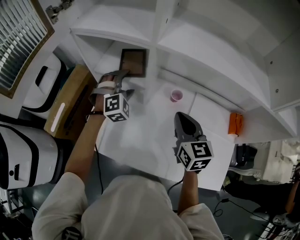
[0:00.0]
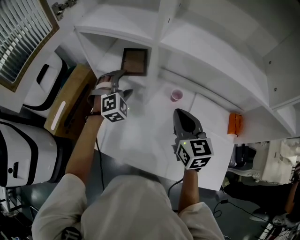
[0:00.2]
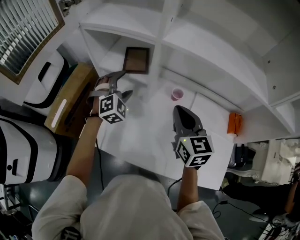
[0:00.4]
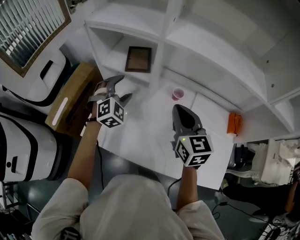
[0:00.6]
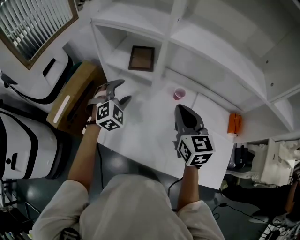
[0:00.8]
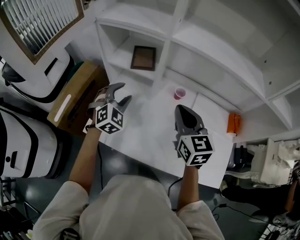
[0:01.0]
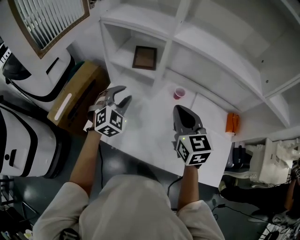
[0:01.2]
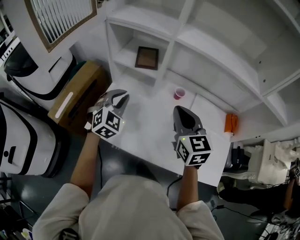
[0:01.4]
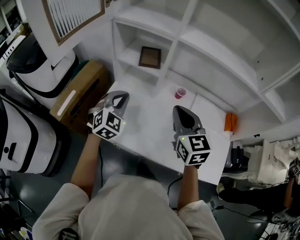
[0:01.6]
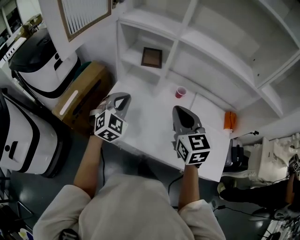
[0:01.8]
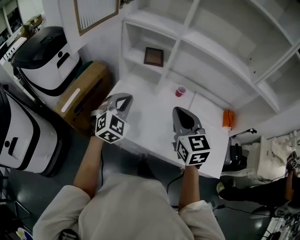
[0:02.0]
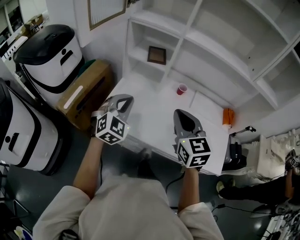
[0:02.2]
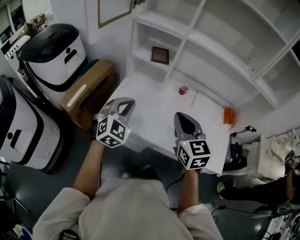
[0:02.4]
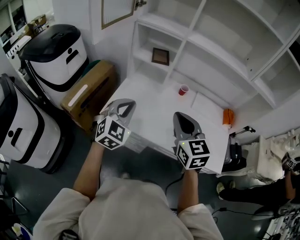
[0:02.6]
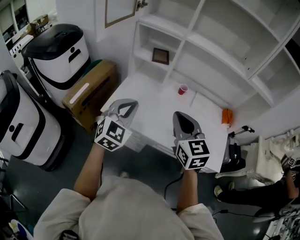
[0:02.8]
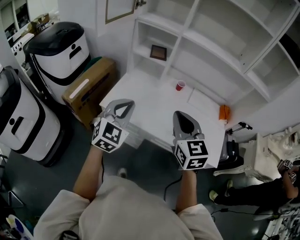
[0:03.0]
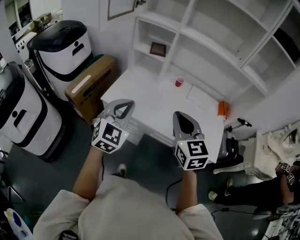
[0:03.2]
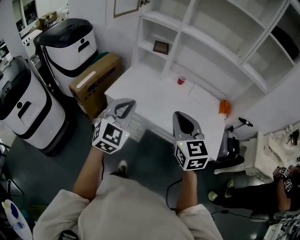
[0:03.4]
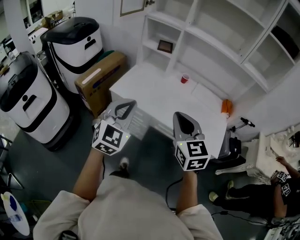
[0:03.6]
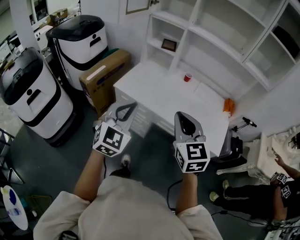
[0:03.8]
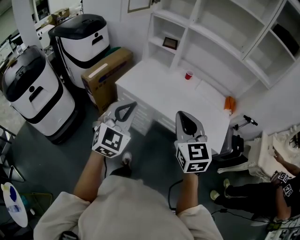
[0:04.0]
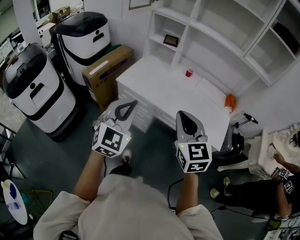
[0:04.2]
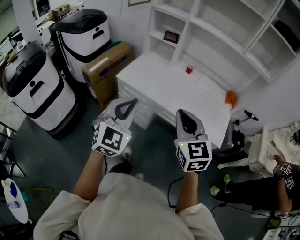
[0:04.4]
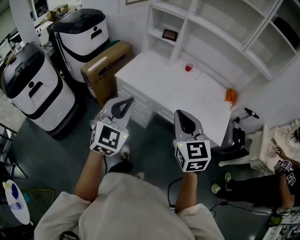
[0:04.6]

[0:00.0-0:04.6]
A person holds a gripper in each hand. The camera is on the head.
0:00.0 to 0:01.6: The left gripper travels backward by approximately 20 cm, turns by about 30 degrees, and closes up. The right gripper heads backward, to the left and upward, covering roughly 15 cm.
0:01.6 to 0:03.0: Both grippers move backward, about 25 cm.
0:03.0 to 0:04.6: The two grippers go some 25 cm backward.

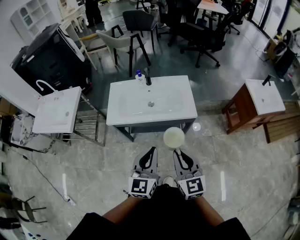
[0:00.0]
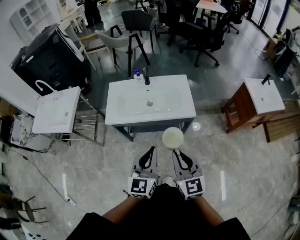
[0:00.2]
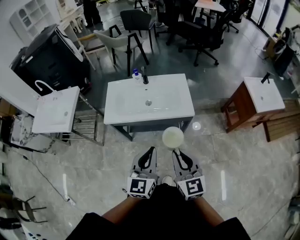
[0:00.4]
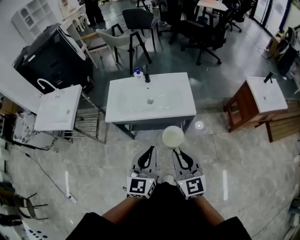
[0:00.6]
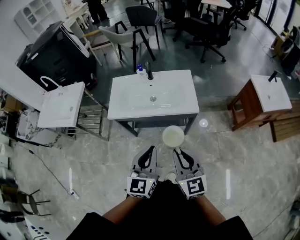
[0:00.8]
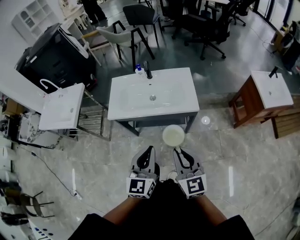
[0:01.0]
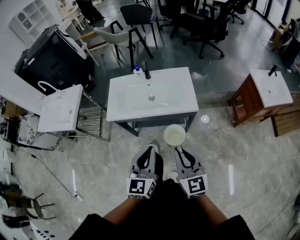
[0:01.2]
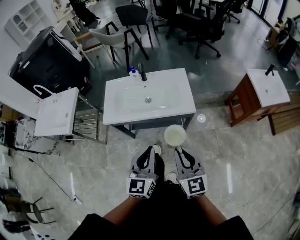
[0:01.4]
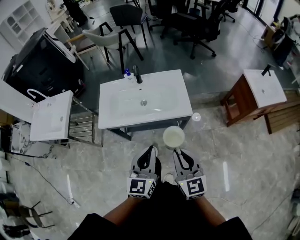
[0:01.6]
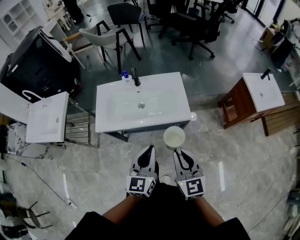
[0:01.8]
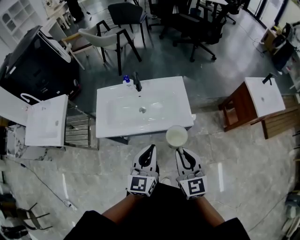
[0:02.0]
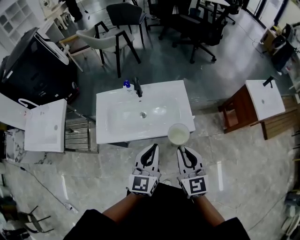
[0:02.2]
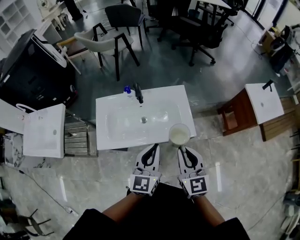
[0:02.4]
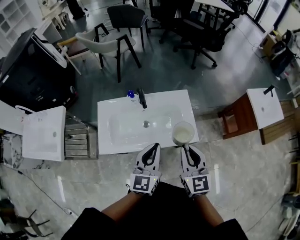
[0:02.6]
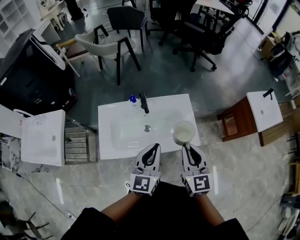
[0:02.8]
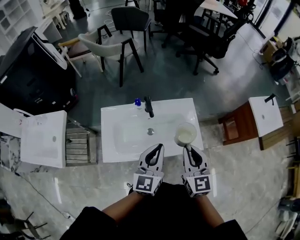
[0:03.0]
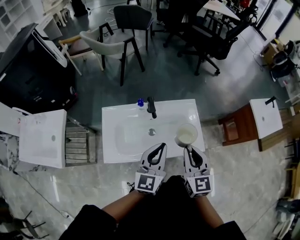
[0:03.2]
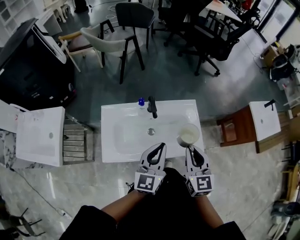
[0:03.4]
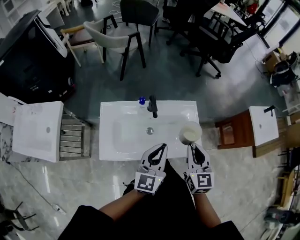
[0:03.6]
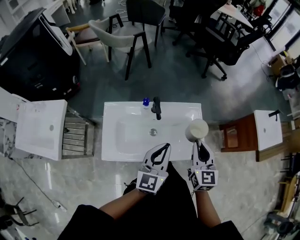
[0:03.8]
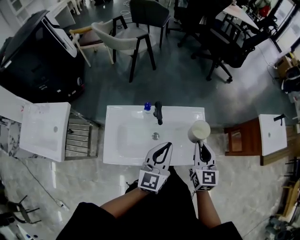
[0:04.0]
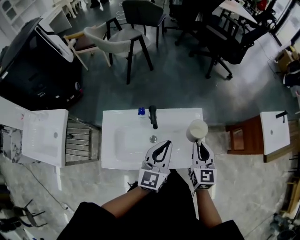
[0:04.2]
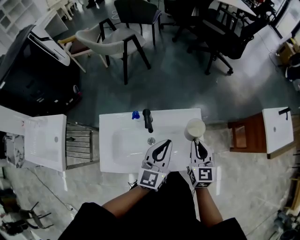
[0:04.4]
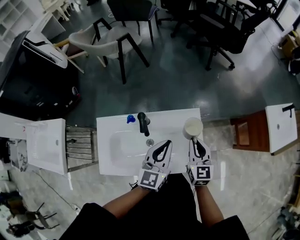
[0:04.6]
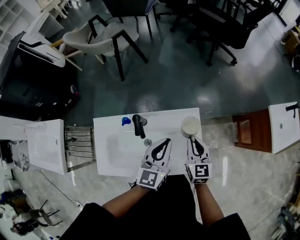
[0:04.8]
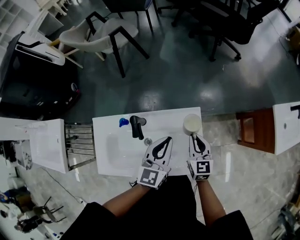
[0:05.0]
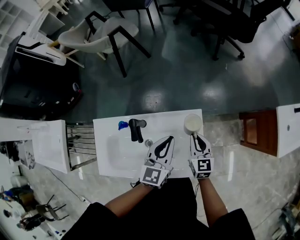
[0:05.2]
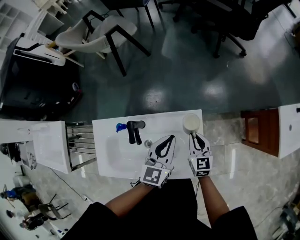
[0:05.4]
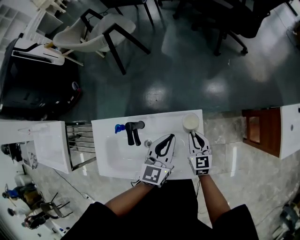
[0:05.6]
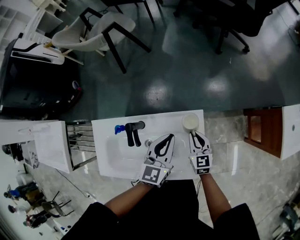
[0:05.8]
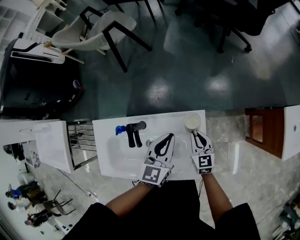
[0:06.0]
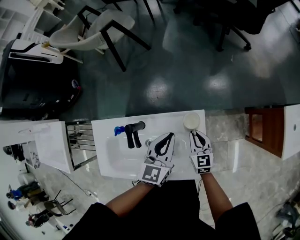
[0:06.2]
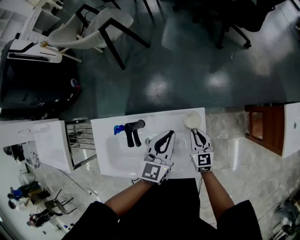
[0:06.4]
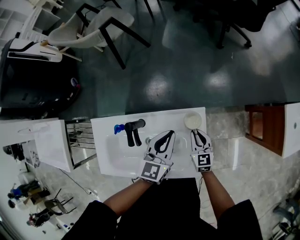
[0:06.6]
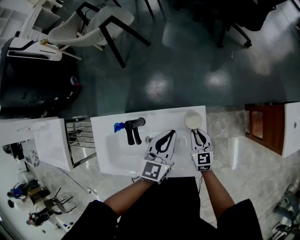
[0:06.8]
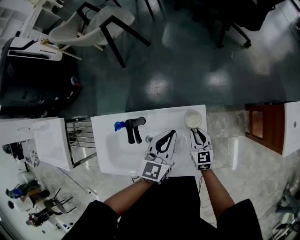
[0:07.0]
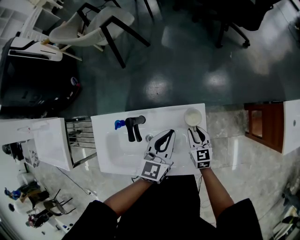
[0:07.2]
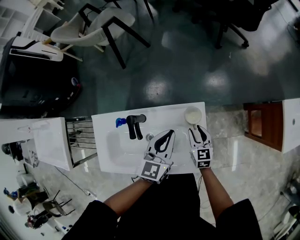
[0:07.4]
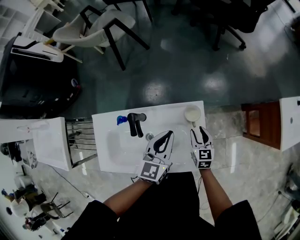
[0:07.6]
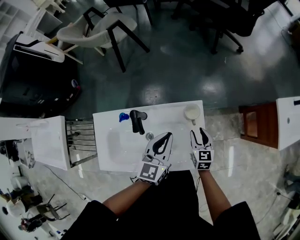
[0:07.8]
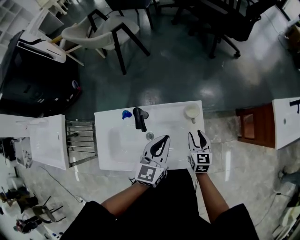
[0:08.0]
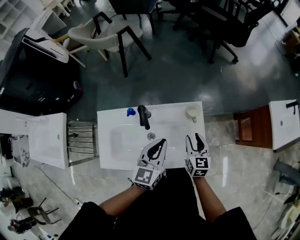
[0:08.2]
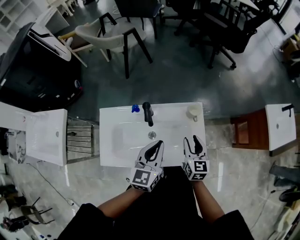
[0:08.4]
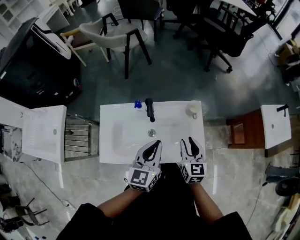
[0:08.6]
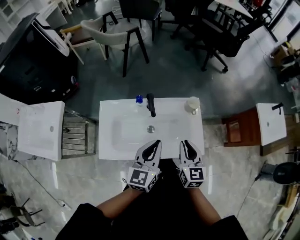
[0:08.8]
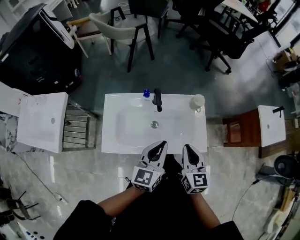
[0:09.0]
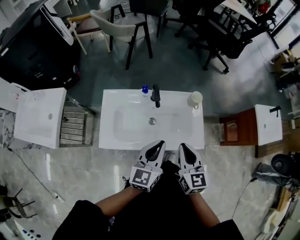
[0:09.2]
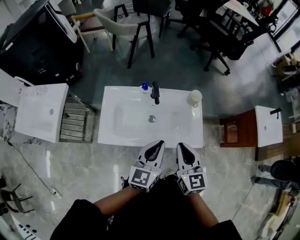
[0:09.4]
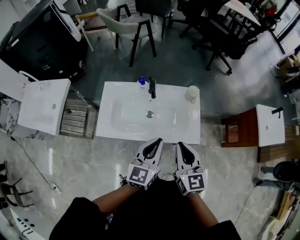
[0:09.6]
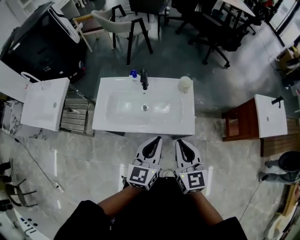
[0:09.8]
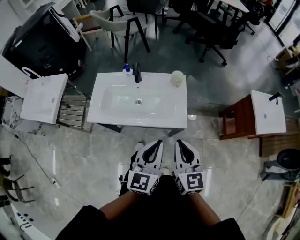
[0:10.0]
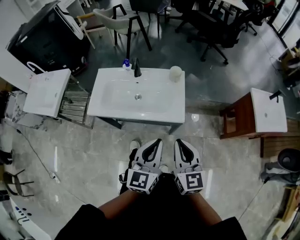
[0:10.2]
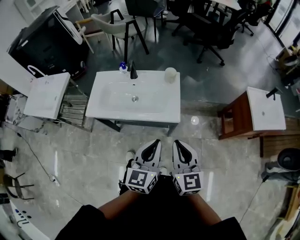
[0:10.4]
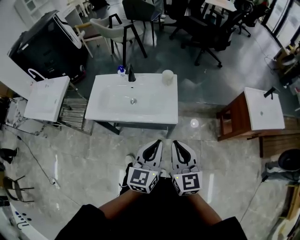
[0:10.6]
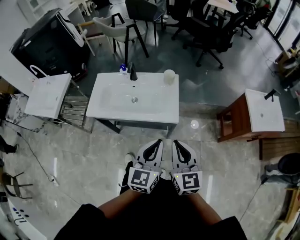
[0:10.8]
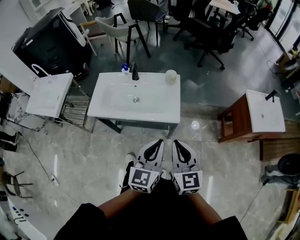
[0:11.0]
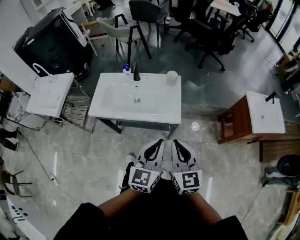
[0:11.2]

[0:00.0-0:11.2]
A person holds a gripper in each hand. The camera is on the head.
0:00.0 to 0:01.6: The right gripper is displaced to the right by approximately 5 cm, while the left gripper moves about 5 cm.
0:01.6 to 0:03.2: The grippers both shift forward by roughly 30 cm.
0:03.2 to 0:04.8: The left gripper heads forward, to the right and downward, covering roughly 25 cm; the right gripper shifts roughly 30 cm forward, downward and to the right.
0:04.8 to 0:06.4: The left gripper is displaced forward and downward by roughly 15 cm, while the right gripper moves downward and forward, about 15 cm.
0:06.4 to 0:08.0: Both grippers move backward and upward, roughly 10 cm. The right gripper opens up.
0:08.0 to 0:09.6: The right gripper travels backward, upward and to the left by about 35 cm, turns by roughly 20 degrees, and closes. Meanwhile the left gripper is displaced backward by about 25 cm.
0:09.6 to 0:11.2: Both grippers travel together backward and to the right, roughly 25 cm.

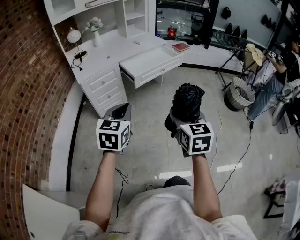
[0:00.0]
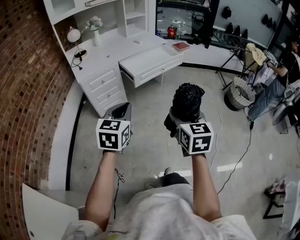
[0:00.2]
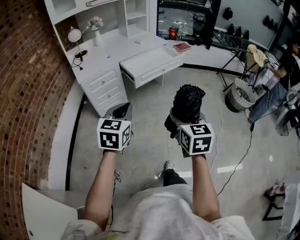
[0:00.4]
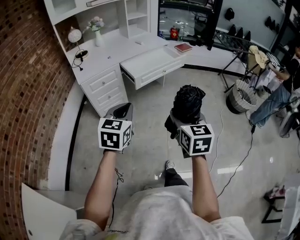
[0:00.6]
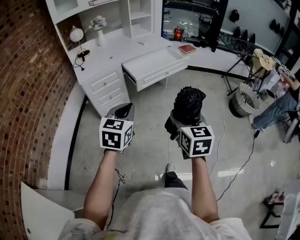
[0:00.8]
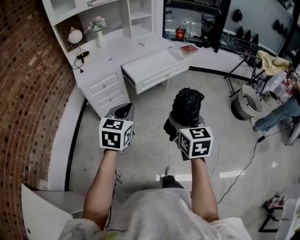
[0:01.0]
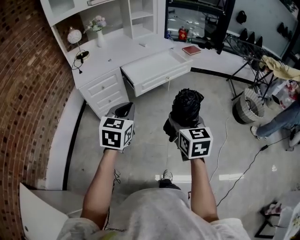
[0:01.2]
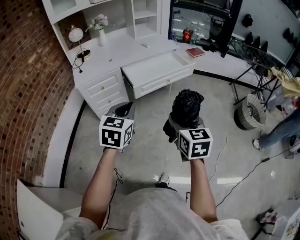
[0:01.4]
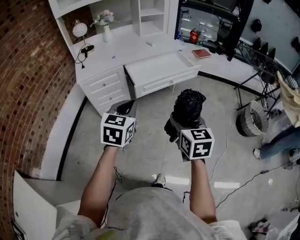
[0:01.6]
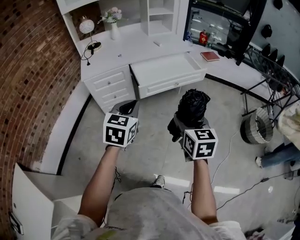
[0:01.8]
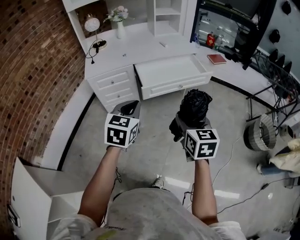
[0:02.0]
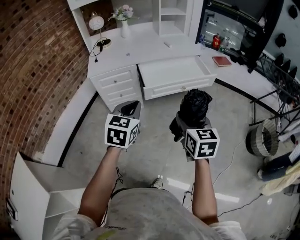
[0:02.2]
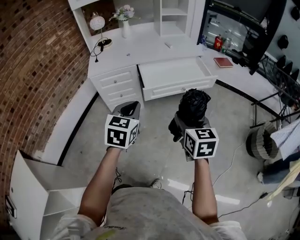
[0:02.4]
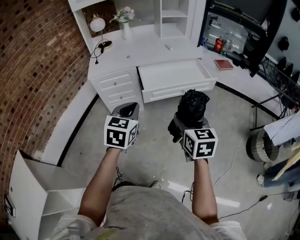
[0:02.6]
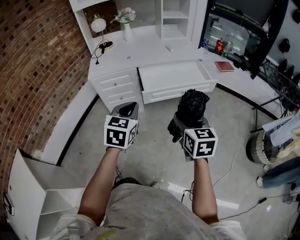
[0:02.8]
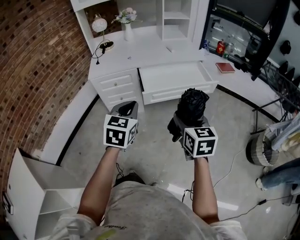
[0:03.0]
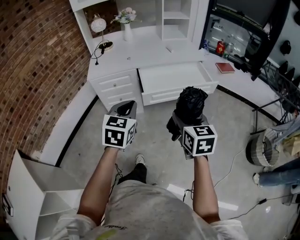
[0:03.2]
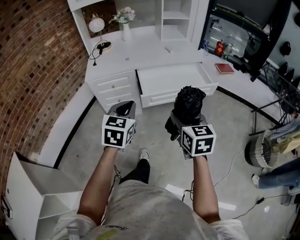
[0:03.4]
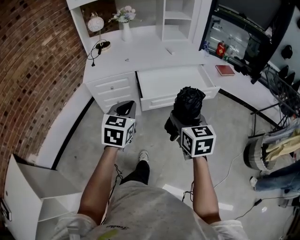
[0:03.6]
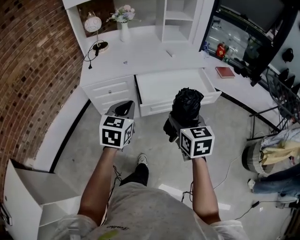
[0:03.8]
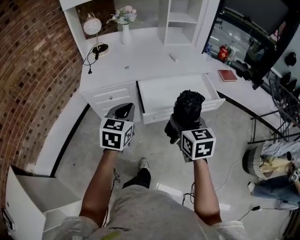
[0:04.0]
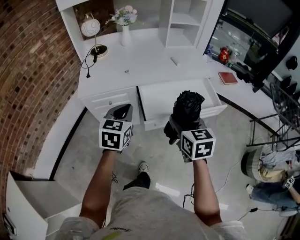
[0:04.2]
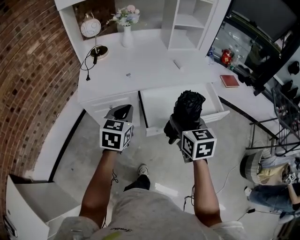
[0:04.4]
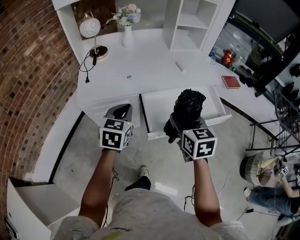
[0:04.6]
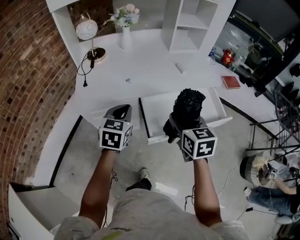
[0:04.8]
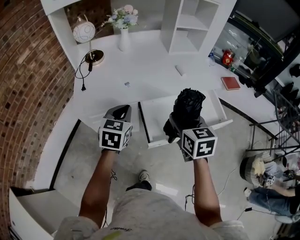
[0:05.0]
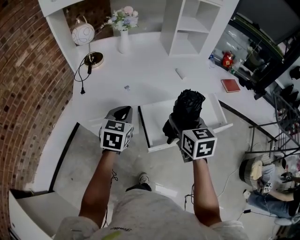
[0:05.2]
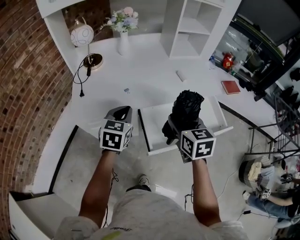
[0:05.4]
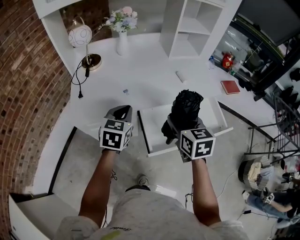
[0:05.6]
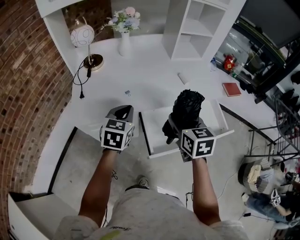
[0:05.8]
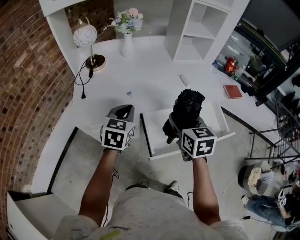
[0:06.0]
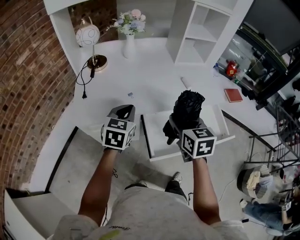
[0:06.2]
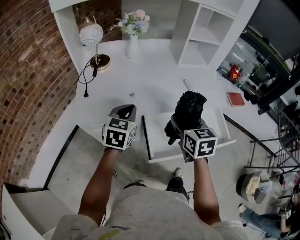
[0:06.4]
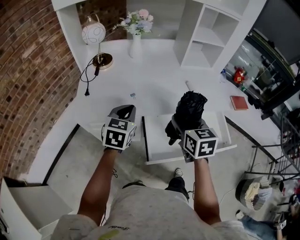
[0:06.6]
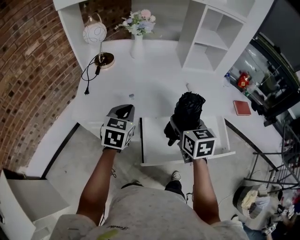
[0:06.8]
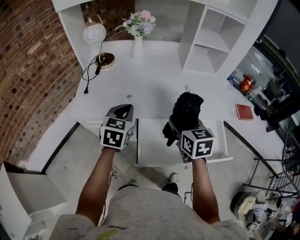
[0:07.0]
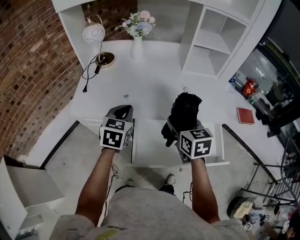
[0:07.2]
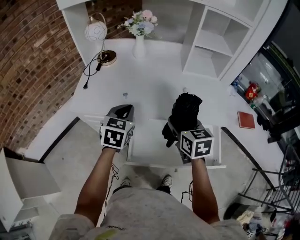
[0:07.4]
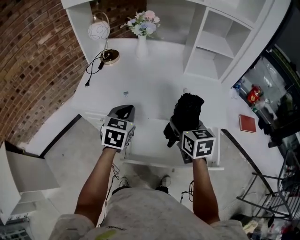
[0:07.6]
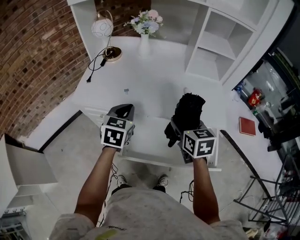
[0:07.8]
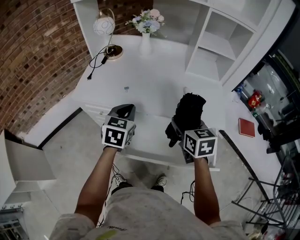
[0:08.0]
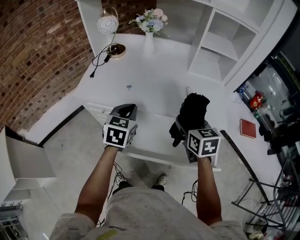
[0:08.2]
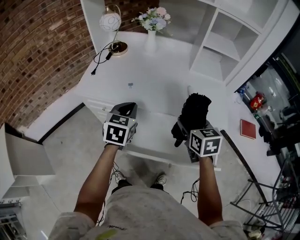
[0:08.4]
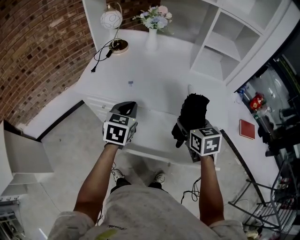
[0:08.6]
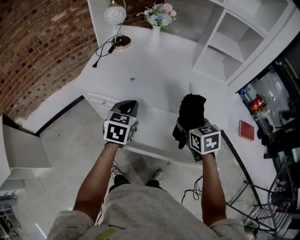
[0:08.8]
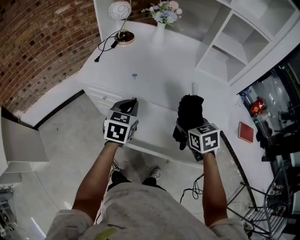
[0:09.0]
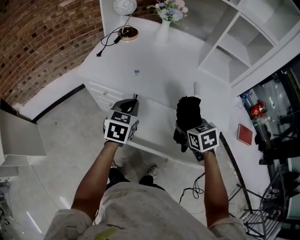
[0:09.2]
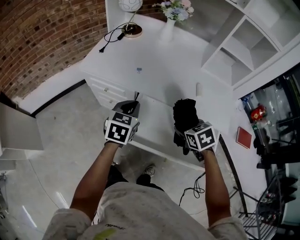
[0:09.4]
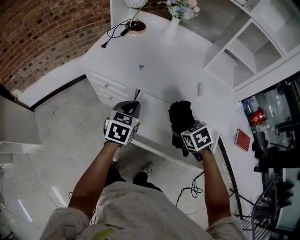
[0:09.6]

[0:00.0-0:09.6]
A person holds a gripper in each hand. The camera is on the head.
0:00.0 to 0:01.6: The right gripper goes some 20 cm forward, while the left gripper shifts approximately 20 cm forward and to the right.
0:01.6 to 0:03.2: The right gripper shifts roughly 10 cm forward. Meanwhile the left gripper travels forward by about 5 cm.
0:03.2 to 0:04.8: The grippers both shift forward by roughly 30 cm.
0:04.8 to 0:06.4: Both grippers travel together forward, roughly 10 cm.
0:06.4 to 0:08.0: The grippers both shift to the right by approximately 10 cm. The right gripper changes its angle by about 20 degrees. The left gripper changes its angle by some 20 degrees.
0:08.0 to 0:09.6: The right gripper heads downward, covering some 10 cm, and tilts its fingers roughly 30 degrees downward. Meanwhile the left gripper goes roughly 10 cm downward.
